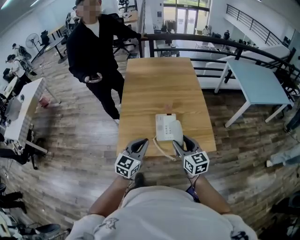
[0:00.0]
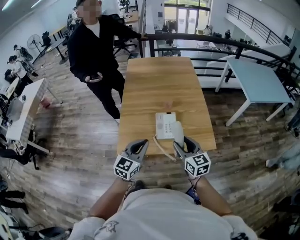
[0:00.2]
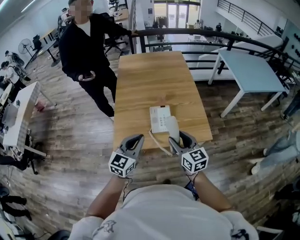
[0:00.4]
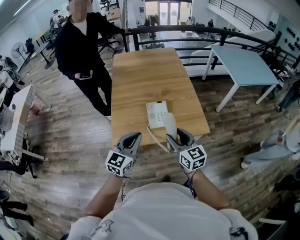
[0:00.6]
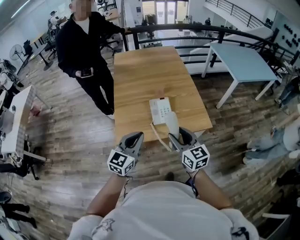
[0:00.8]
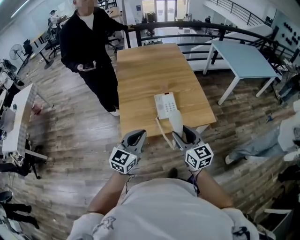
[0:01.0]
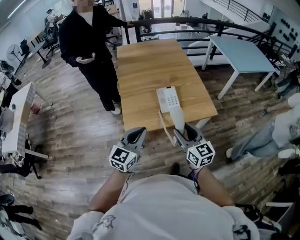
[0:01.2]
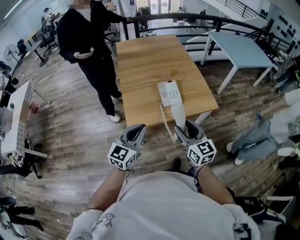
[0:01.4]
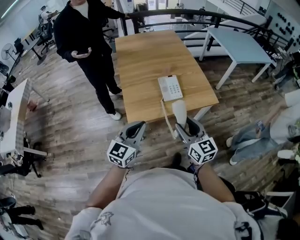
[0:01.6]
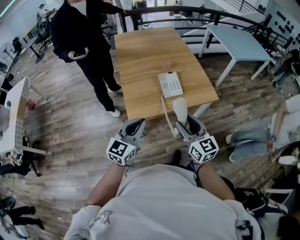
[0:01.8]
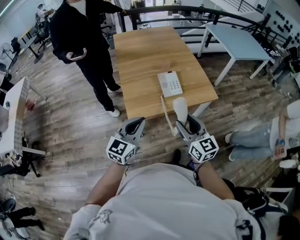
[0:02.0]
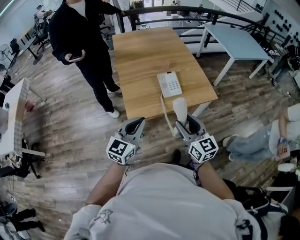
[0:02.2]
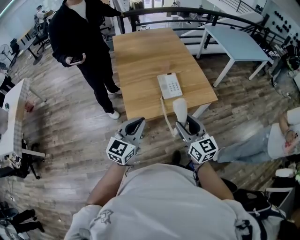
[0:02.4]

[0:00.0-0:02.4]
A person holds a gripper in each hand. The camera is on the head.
0:00.0 to 0:01.2: Both grippers move backward and to the left, approximately 15 cm.
0:01.2 to 0:02.4: The left gripper changes place by roughly 5 cm. Meanwhile the right gripper travels backward by roughly 5 cm.

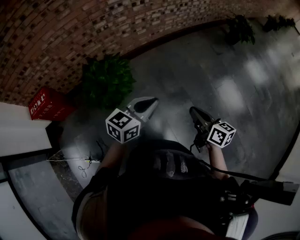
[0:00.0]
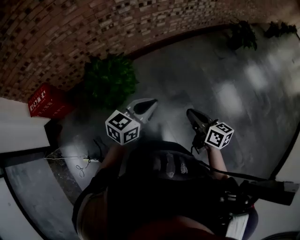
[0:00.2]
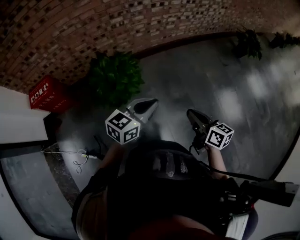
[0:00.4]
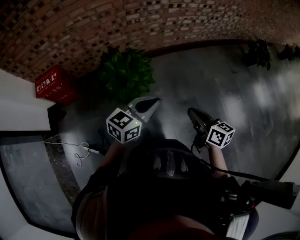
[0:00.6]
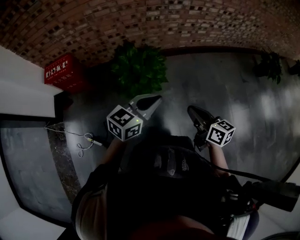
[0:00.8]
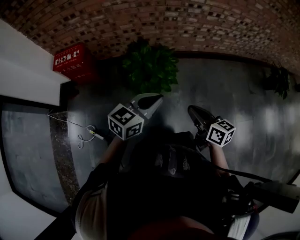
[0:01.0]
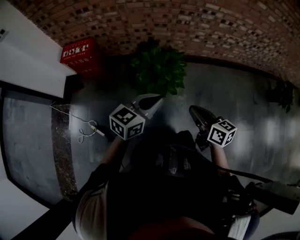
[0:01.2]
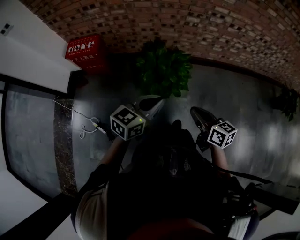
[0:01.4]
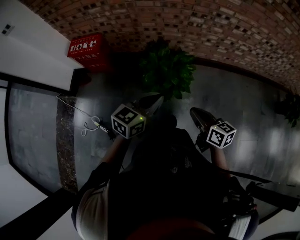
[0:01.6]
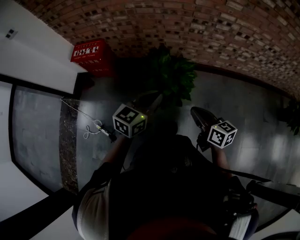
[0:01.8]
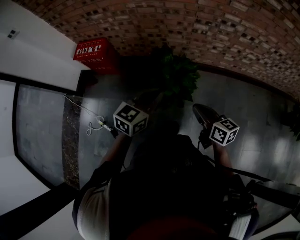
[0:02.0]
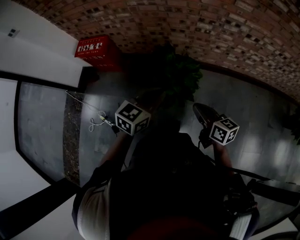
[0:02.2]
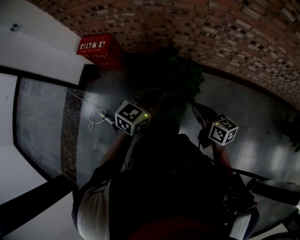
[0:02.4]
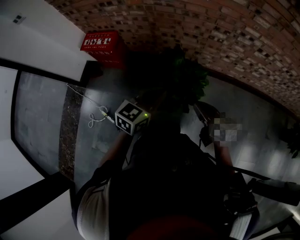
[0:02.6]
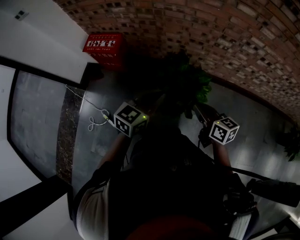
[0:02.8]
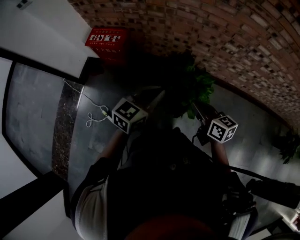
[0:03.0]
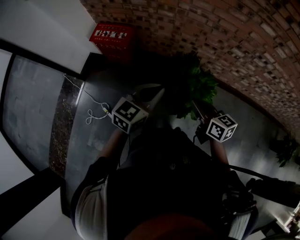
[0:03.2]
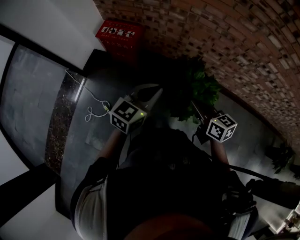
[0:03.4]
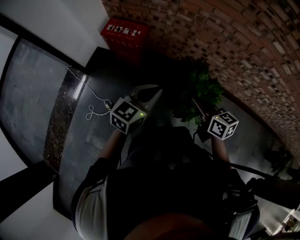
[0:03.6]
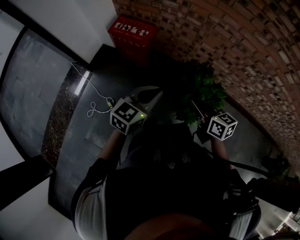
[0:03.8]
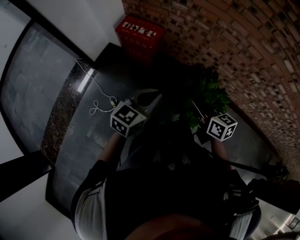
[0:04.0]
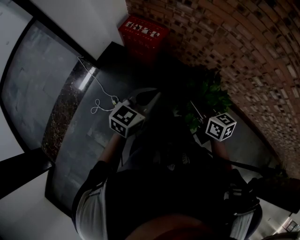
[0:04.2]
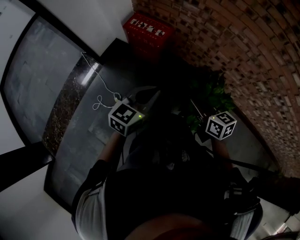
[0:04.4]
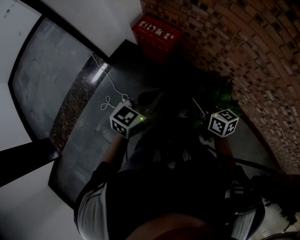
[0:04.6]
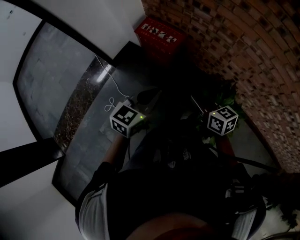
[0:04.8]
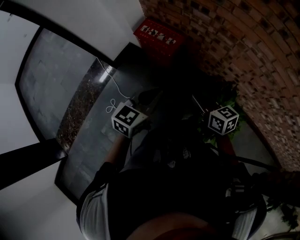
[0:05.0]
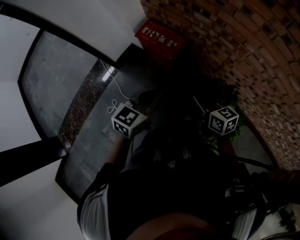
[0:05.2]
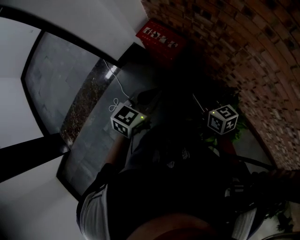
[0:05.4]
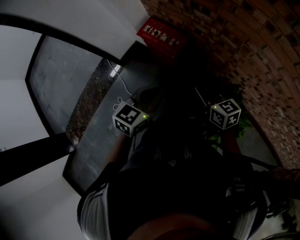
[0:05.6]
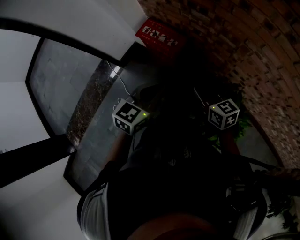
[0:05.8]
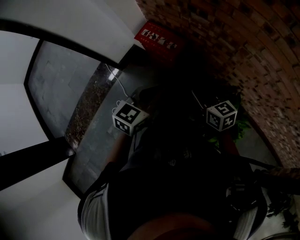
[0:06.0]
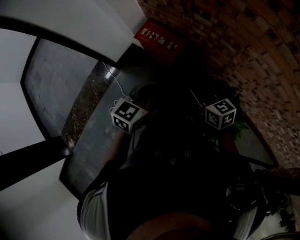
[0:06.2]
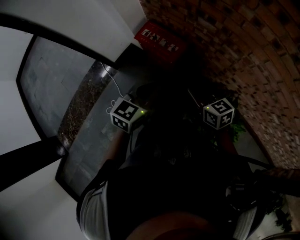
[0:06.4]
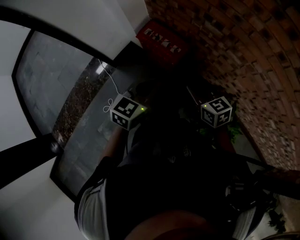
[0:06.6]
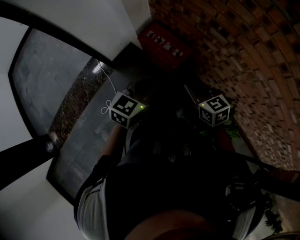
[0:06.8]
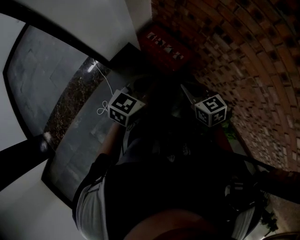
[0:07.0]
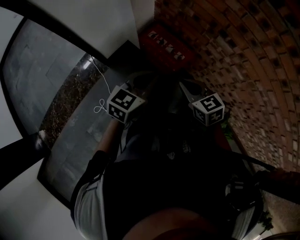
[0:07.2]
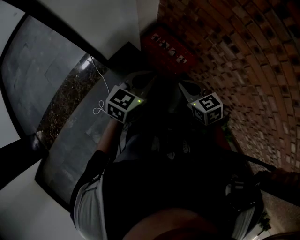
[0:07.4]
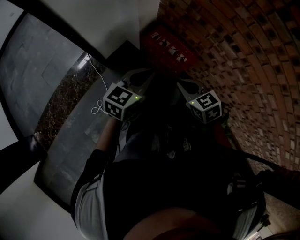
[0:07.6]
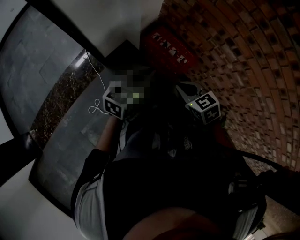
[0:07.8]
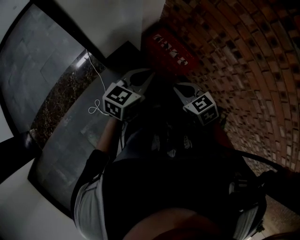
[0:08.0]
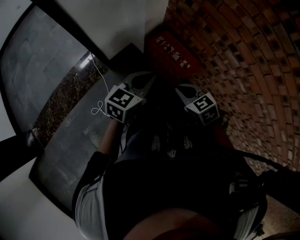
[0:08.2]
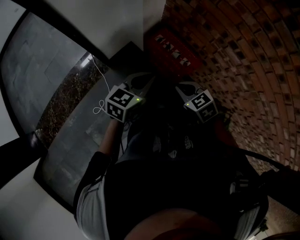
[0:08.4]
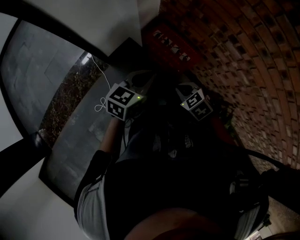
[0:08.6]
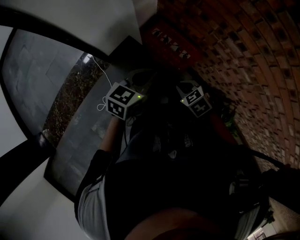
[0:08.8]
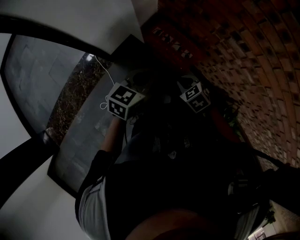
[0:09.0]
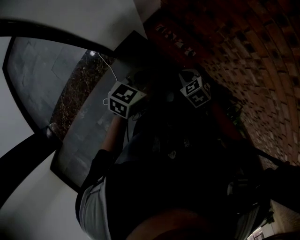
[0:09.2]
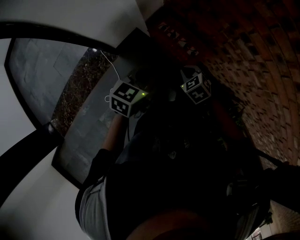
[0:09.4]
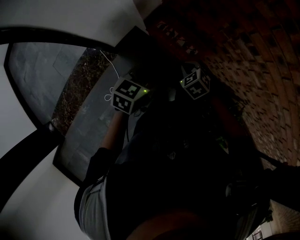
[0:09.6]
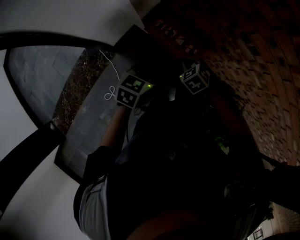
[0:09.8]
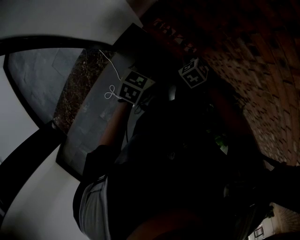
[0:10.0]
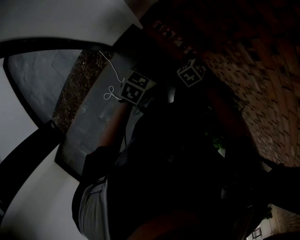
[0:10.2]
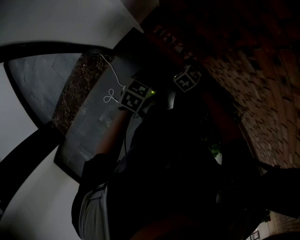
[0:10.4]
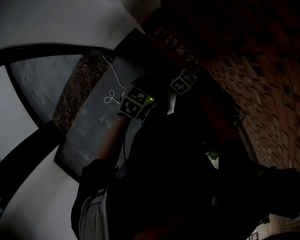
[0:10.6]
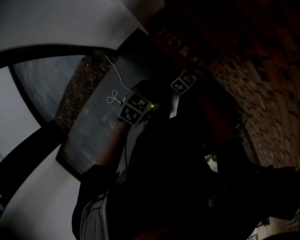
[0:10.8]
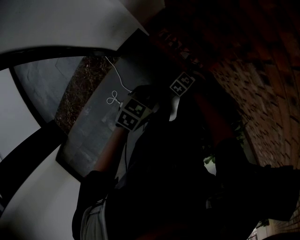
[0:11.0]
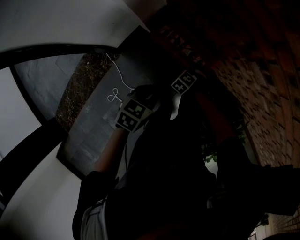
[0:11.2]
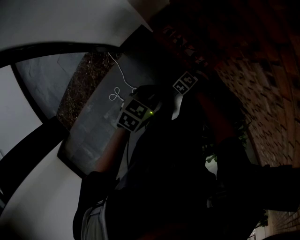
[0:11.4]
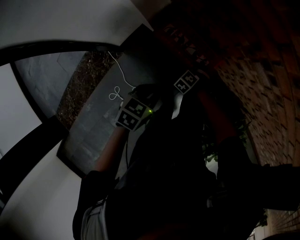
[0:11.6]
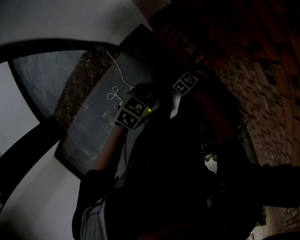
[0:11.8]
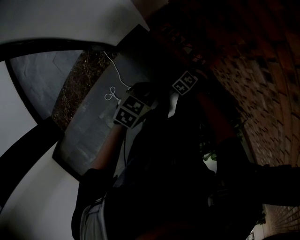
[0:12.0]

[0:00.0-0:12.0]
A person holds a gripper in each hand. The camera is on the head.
0:00.0 to 0:01.6: The right gripper changes place by roughly 35 cm, and swivels about 40 degrees; the left gripper changes place by roughly 30 cm, and changes its angle by roughly 30 degrees.
0:01.6 to 0:03.0: Both grippers move forward and to the left, approximately 20 cm.
0:03.0 to 0:04.4: The right gripper shifts some 25 cm to the left and forward, and swivels some 20 degrees, while the left gripper travels to the left by some 25 cm.
0:04.4 to 0:06.0: The grippers both shift forward by approximately 15 cm.
0:06.0 to 0:07.6: Both grippers travel together to the left and forward, some 25 cm. The right gripper swivels approximately 30 degrees.
0:07.6 to 0:09.0: The left gripper changes place by approximately 5 cm. Meanwhile the right gripper goes about 15 cm downward.
0:09.0 to 0:10.4: The left gripper moves downward and forward, some 15 cm, and swivels some 20 degrees. Meanwhile the right gripper is displaced forward and downward by about 20 cm.
0:10.4 to 0:12.0: The left gripper moves about 5 cm. Meanwhile the right gripper moves downward, some 10 cm, and opens.

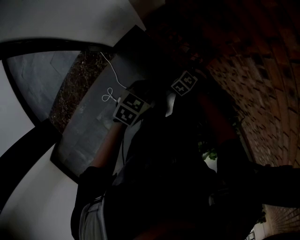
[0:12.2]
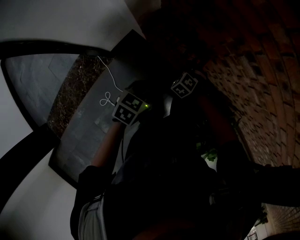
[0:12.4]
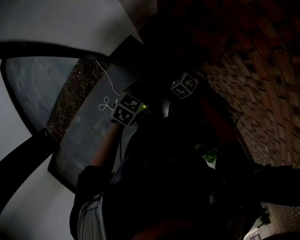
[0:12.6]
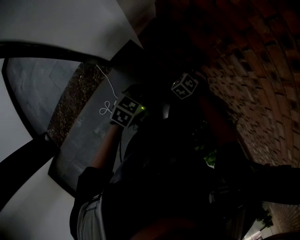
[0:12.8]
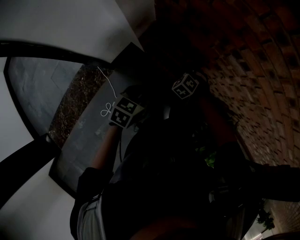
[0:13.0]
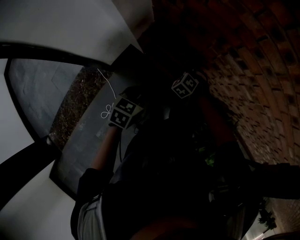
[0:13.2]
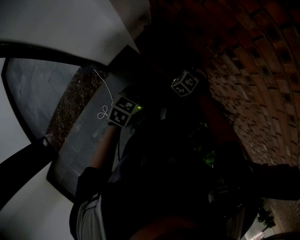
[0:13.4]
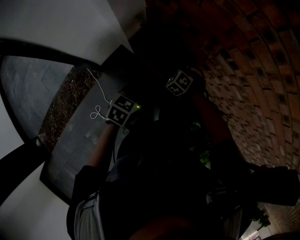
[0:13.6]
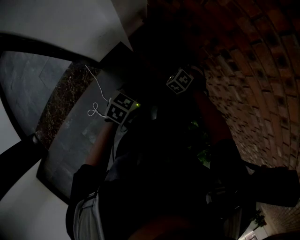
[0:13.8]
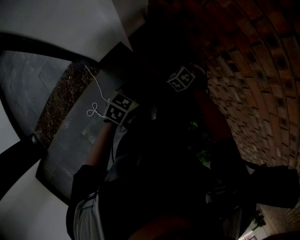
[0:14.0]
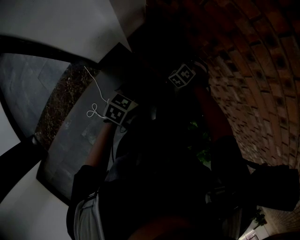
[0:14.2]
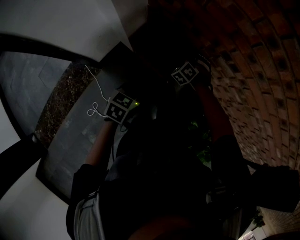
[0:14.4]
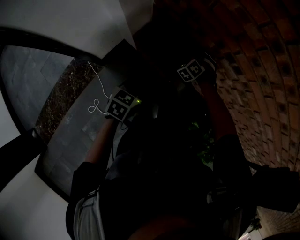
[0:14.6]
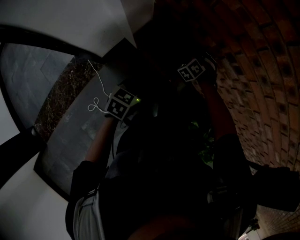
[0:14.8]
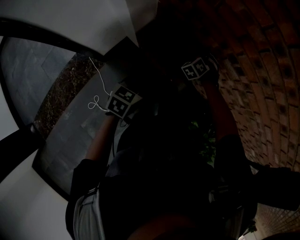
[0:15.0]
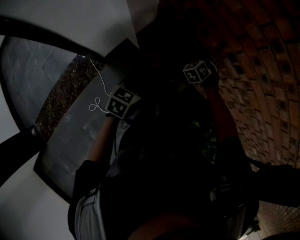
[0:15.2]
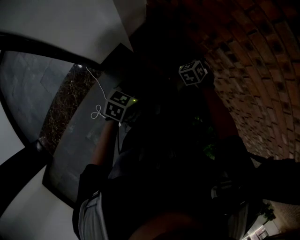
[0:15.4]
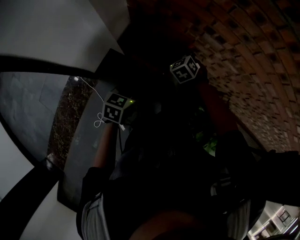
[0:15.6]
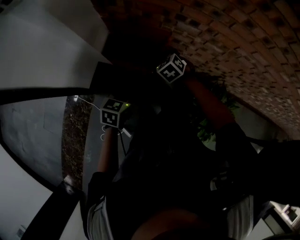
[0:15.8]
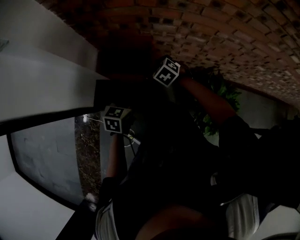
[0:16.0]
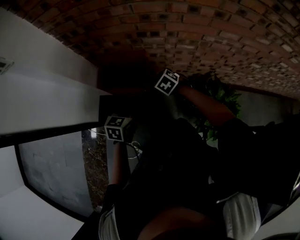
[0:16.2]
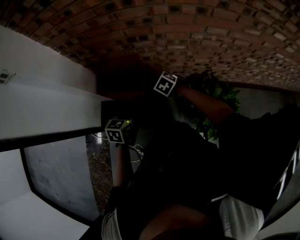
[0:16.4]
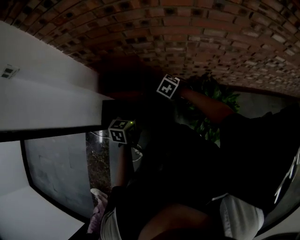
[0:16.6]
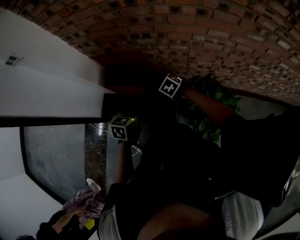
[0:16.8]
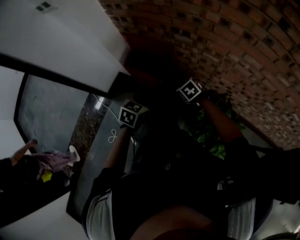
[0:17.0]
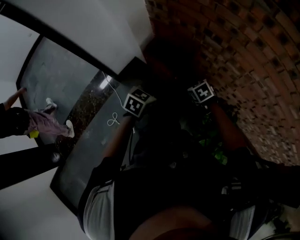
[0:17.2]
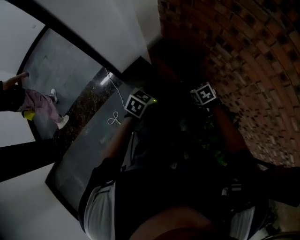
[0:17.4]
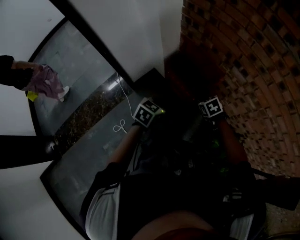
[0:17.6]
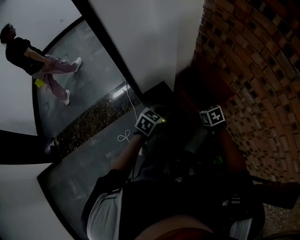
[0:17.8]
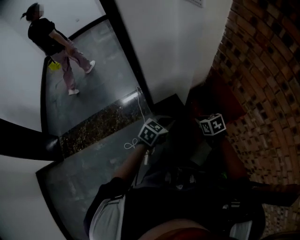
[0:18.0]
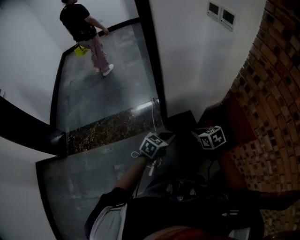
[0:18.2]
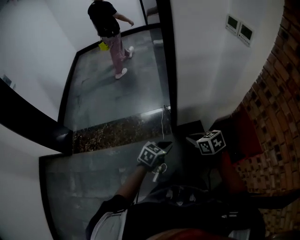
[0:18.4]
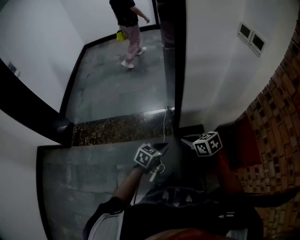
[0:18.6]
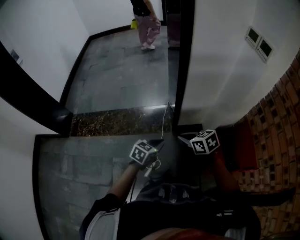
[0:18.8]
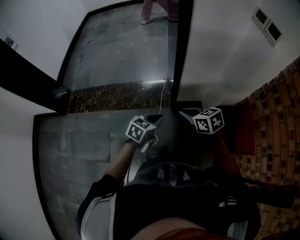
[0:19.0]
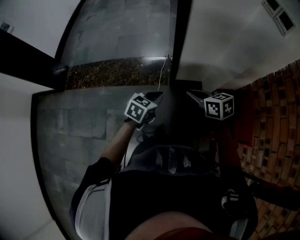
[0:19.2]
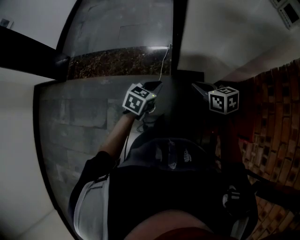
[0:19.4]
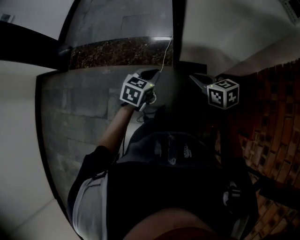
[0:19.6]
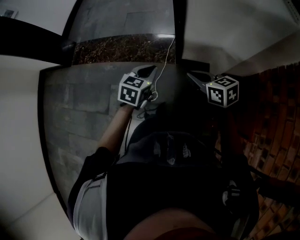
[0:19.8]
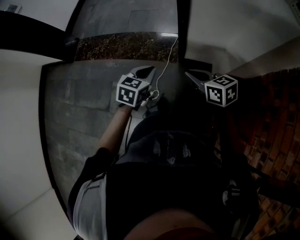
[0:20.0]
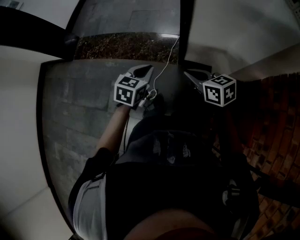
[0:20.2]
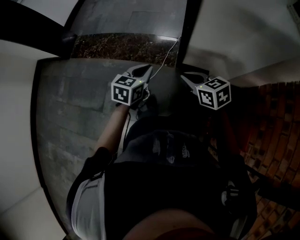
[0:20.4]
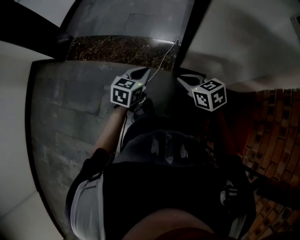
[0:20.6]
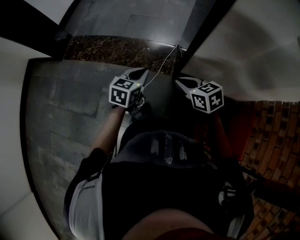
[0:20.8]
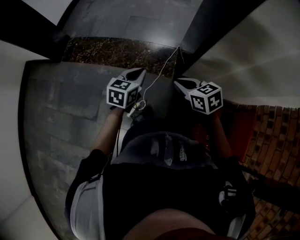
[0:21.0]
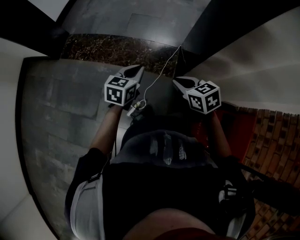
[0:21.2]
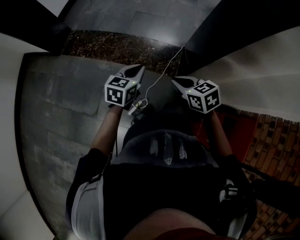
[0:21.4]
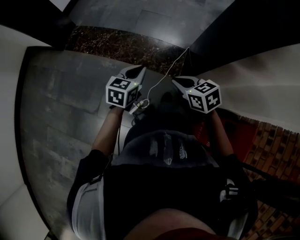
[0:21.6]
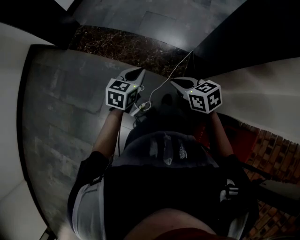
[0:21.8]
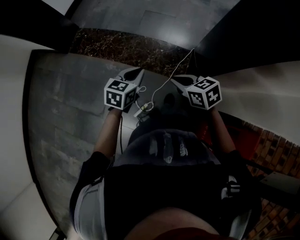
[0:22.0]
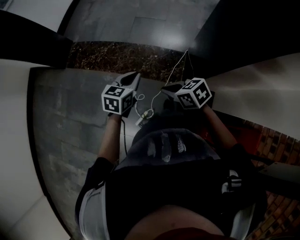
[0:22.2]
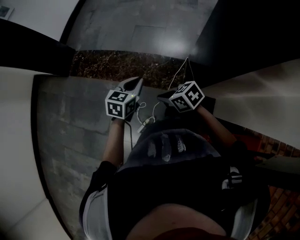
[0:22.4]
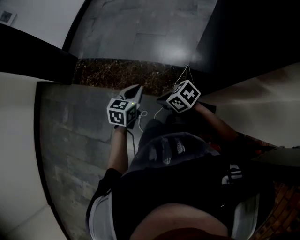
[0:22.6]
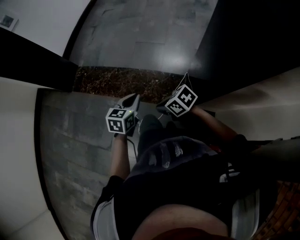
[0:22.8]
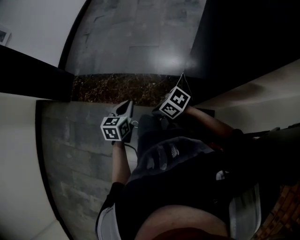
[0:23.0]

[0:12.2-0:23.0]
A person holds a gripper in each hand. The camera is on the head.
0:12.2 to 0:13.8: The right gripper goes roughly 15 cm upward and forward, rotates roughly 20 degrees, and closes up.
0:13.8 to 0:15.2: The right gripper shifts approximately 5 cm forward.
0:15.2 to 0:16.8: The left gripper moves to the right, roughly 20 cm, while the right gripper travels backward and to the right by approximately 30 cm, and changes its angle by about 40 degrees.
0:16.8 to 0:18.4: The pair of grippers is taken some 50 cm. The left gripper swivels approximately 40 degrees; the right gripper swivels about 50 degrees.
0:18.4 to 0:20.0: The right gripper shifts by roughly 5 cm, and rotates some 20 degrees, while the left gripper shifts by roughly 5 cm, and turns by roughly 40 degrees.
0:20.0 to 0:21.4: Both grippers move to the left and forward, roughly 25 cm. The right gripper swivels some 20 degrees.
0:21.4 to 0:23.0: The left gripper shifts some 15 cm forward and to the right, while the right gripper shifts approximately 15 cm forward and downward, and turns by roughly 30 degrees.
